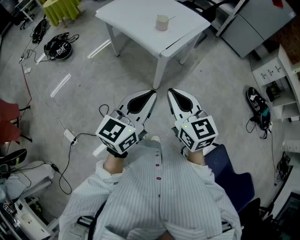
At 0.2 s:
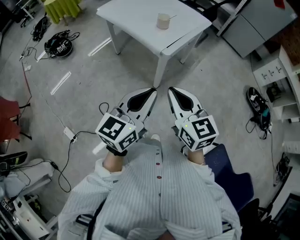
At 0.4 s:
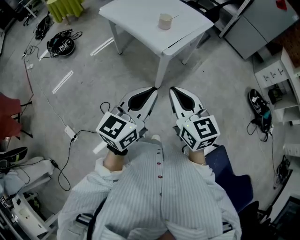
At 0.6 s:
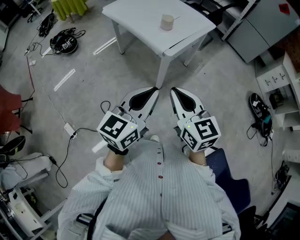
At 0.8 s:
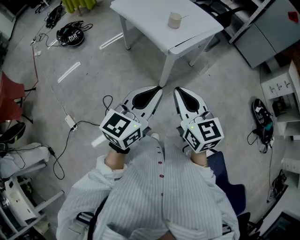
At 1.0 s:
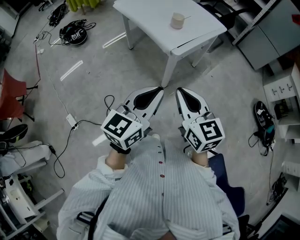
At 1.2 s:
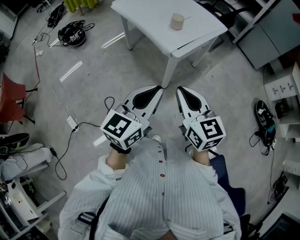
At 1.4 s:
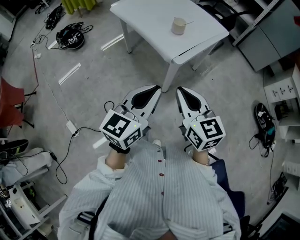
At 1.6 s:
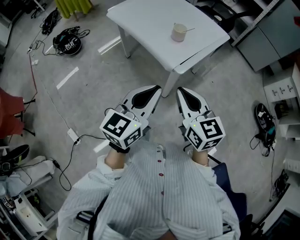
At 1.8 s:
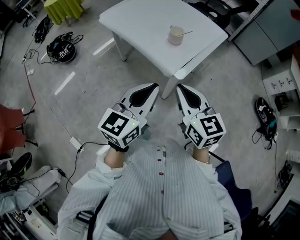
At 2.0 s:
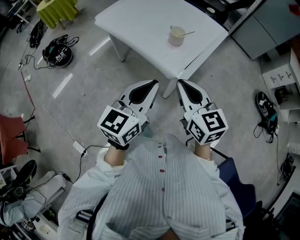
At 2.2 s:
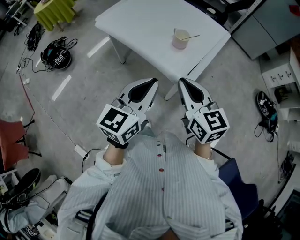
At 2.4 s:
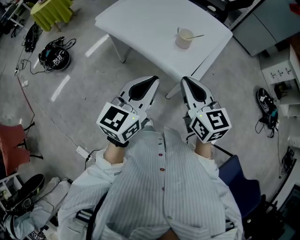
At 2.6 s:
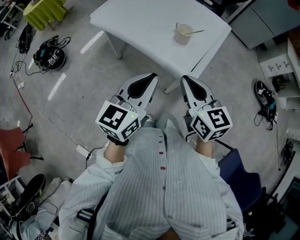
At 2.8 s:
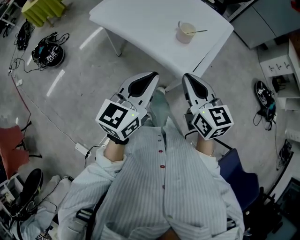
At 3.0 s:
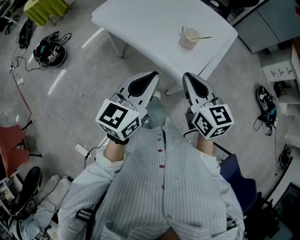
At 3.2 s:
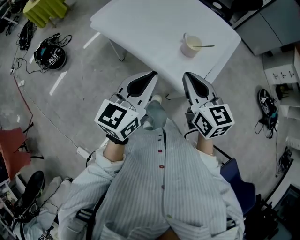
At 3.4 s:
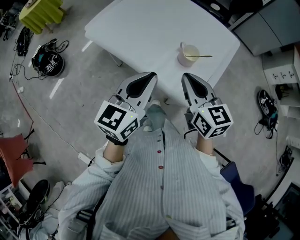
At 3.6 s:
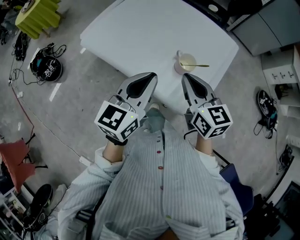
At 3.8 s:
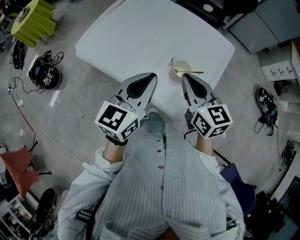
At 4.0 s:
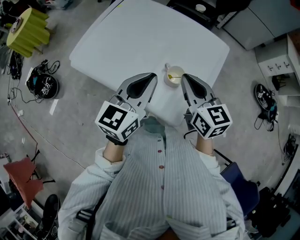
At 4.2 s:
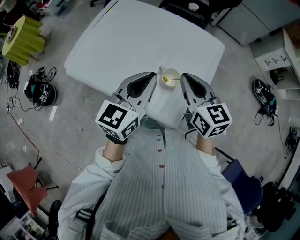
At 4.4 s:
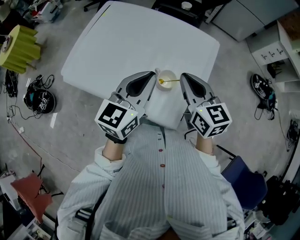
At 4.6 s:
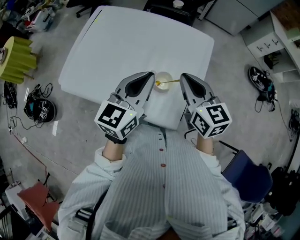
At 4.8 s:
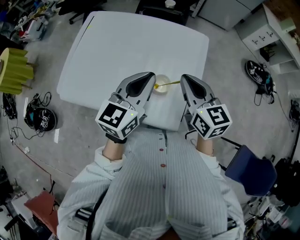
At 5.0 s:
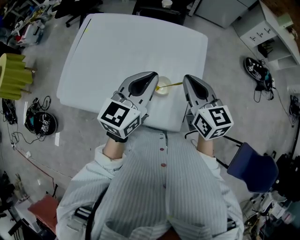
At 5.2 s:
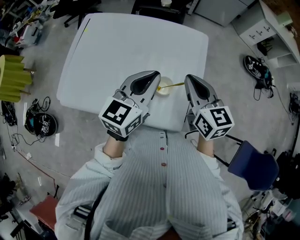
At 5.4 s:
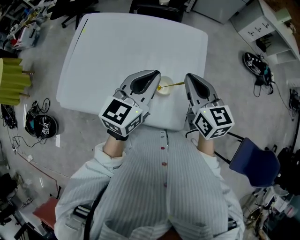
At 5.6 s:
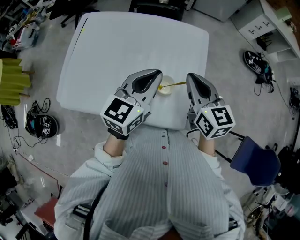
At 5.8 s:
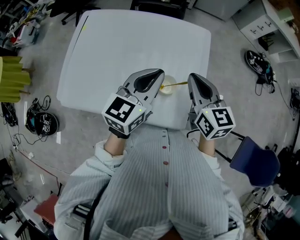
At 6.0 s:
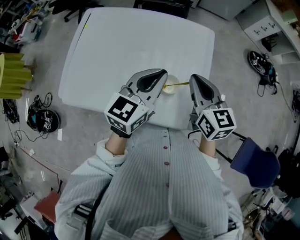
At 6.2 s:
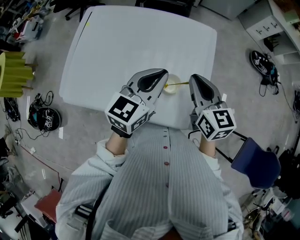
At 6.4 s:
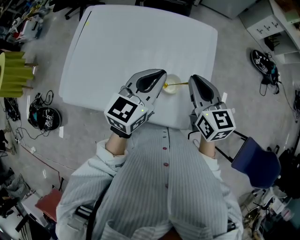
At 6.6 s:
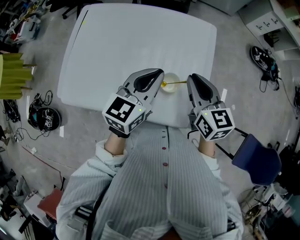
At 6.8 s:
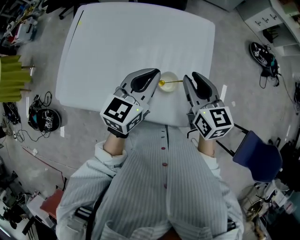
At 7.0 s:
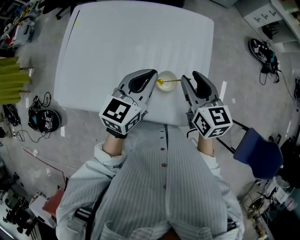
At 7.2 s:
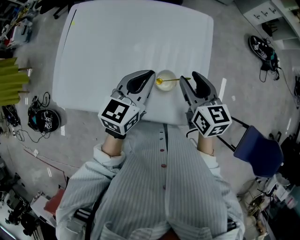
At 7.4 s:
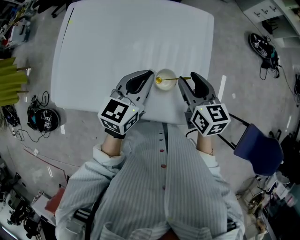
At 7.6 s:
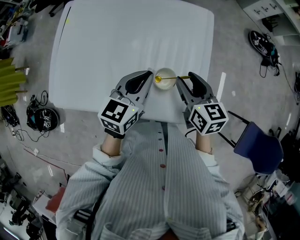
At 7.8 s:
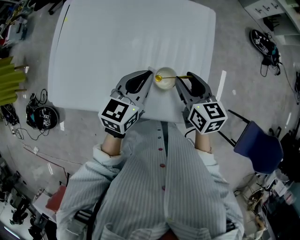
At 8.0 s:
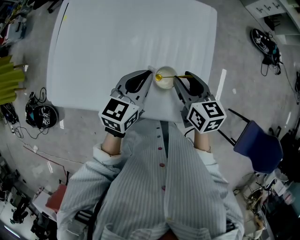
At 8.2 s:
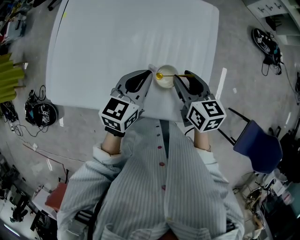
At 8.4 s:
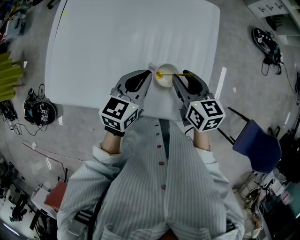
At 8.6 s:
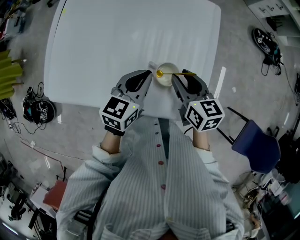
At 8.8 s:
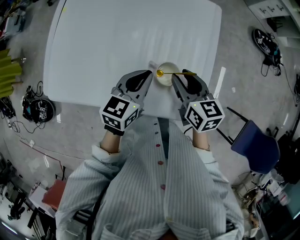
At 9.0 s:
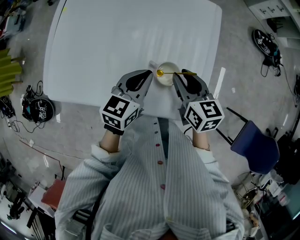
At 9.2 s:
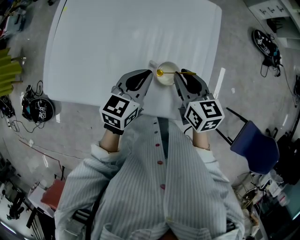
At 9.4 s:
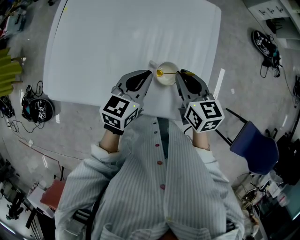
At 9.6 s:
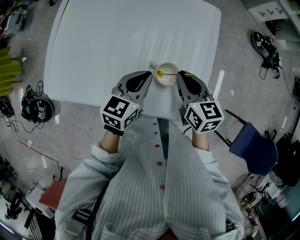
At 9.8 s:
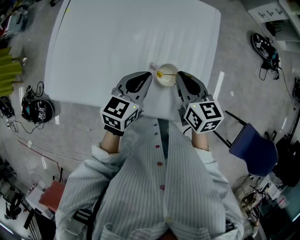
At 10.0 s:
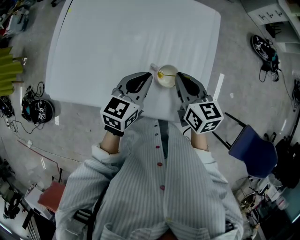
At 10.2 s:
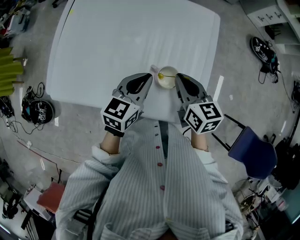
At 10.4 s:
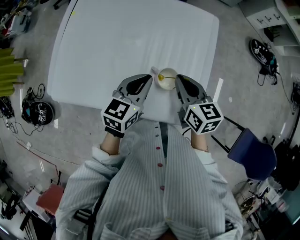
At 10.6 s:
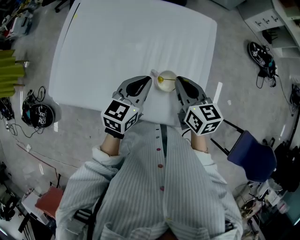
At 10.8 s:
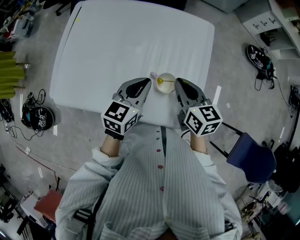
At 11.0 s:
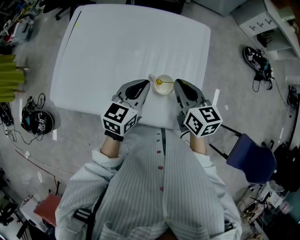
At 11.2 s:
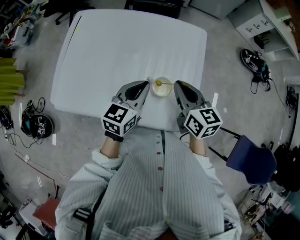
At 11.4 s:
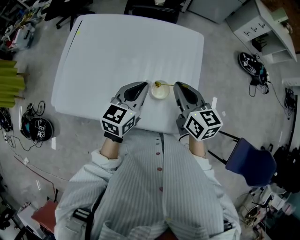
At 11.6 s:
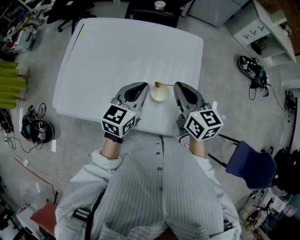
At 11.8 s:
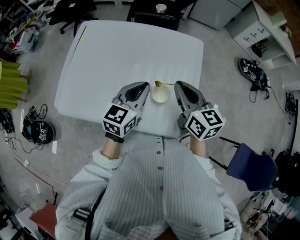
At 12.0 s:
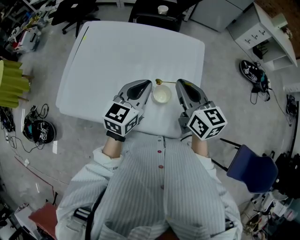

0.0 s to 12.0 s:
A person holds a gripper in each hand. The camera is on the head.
0.0 to 1.6 s: Both grippers move forward, some 15 cm.
1.6 to 3.0 s: Both grippers move forward and to the left, about 25 cm.
3.0 to 4.4 s: Both grippers move forward, approximately 30 cm.
4.4 to 6.0 s: The right gripper moves roughly 5 cm. Meanwhile the left gripper heads forward, covering some 5 cm.
6.0 to 7.6 s: Both grippers travel together downward, some 10 cm. The right gripper opens.
7.6 to 9.0 s: The left gripper shifts approximately 5 cm downward.
9.0 to 10.4 s: The right gripper closes its fingers.
10.4 to 12.0 s: Both grippers travel together upward, approximately 10 cm.

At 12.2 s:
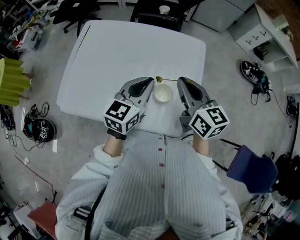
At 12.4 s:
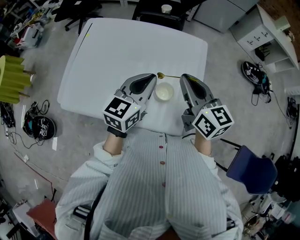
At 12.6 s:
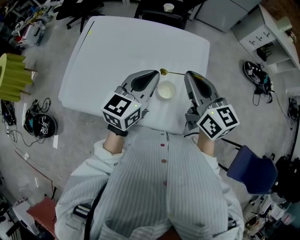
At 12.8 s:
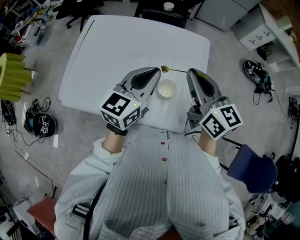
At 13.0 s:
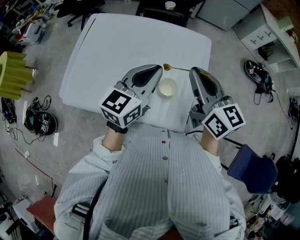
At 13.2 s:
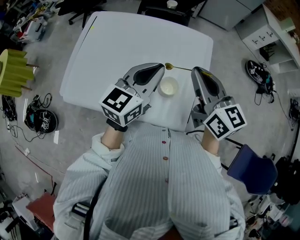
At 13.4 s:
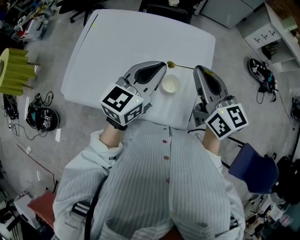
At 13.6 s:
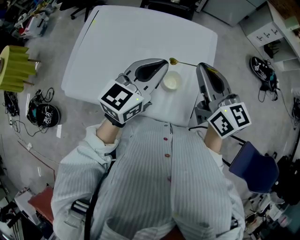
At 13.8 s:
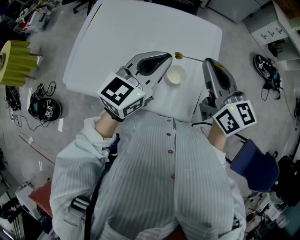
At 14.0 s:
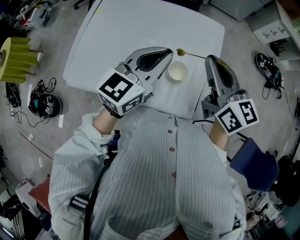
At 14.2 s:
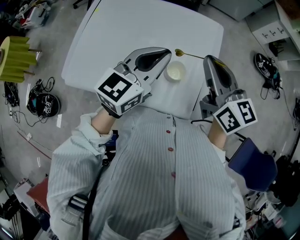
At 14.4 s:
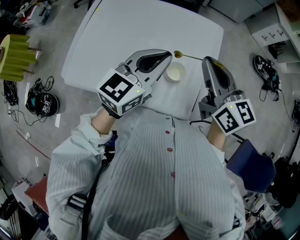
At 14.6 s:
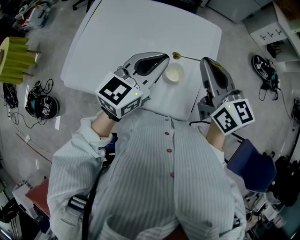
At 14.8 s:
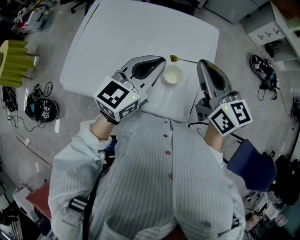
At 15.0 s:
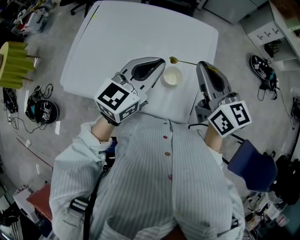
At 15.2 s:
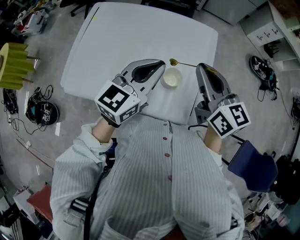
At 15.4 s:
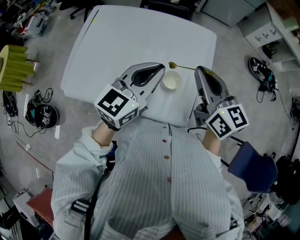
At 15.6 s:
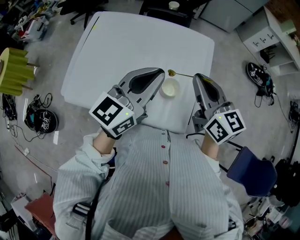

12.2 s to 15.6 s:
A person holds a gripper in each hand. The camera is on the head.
12.2 to 13.8 s: The left gripper travels upward by roughly 5 cm, while the right gripper ends up roughly 5 cm from where it was.
13.8 to 15.6 s: The grippers stay close to where they were, moving slightly.

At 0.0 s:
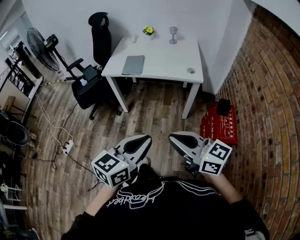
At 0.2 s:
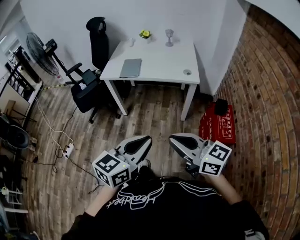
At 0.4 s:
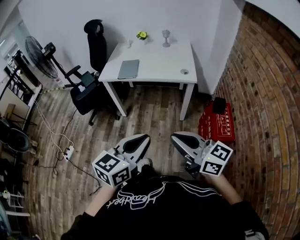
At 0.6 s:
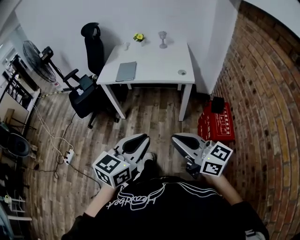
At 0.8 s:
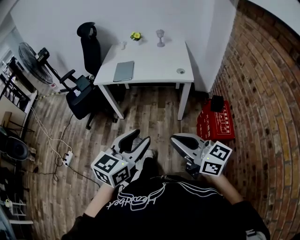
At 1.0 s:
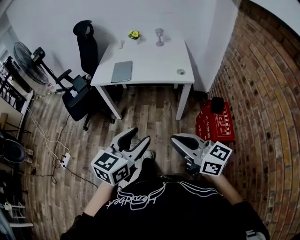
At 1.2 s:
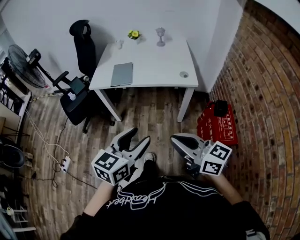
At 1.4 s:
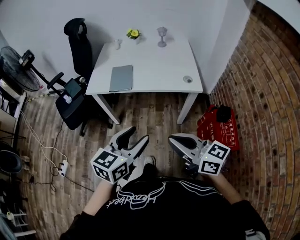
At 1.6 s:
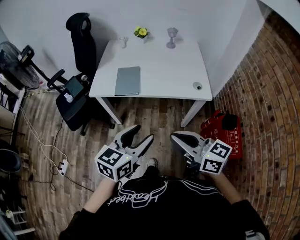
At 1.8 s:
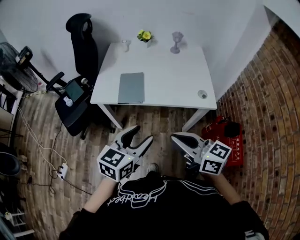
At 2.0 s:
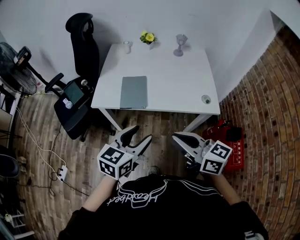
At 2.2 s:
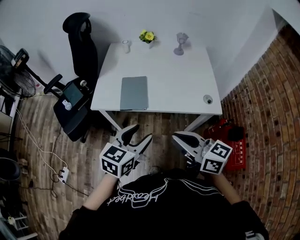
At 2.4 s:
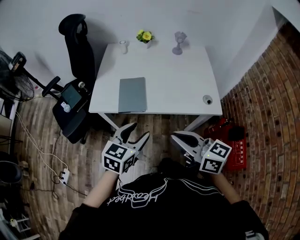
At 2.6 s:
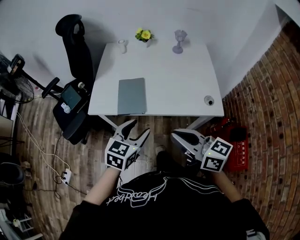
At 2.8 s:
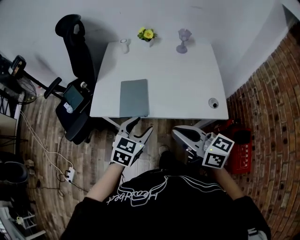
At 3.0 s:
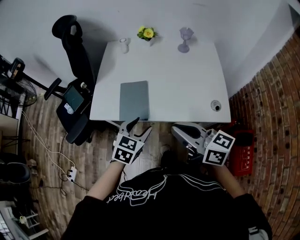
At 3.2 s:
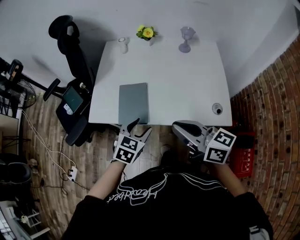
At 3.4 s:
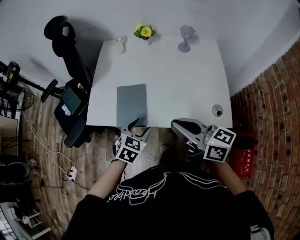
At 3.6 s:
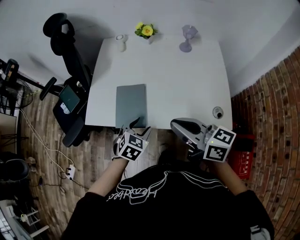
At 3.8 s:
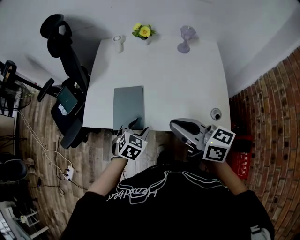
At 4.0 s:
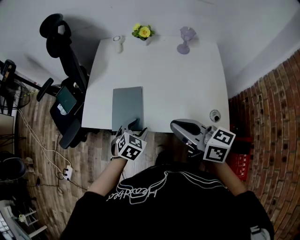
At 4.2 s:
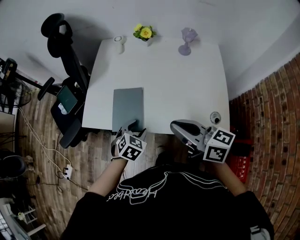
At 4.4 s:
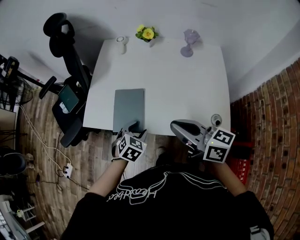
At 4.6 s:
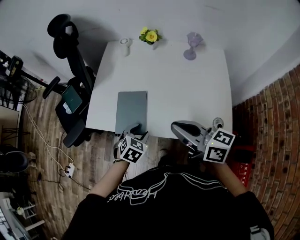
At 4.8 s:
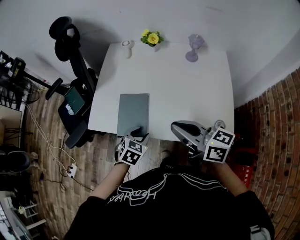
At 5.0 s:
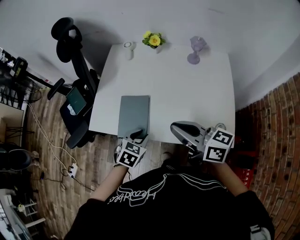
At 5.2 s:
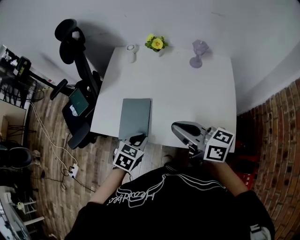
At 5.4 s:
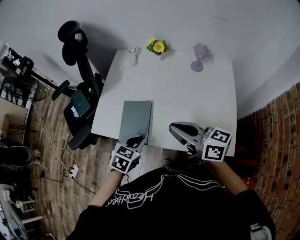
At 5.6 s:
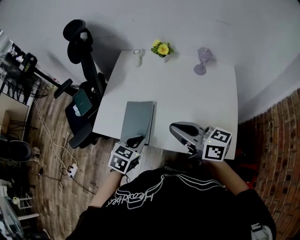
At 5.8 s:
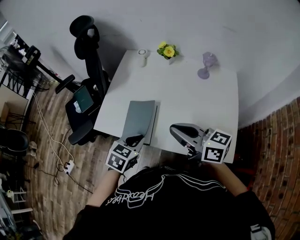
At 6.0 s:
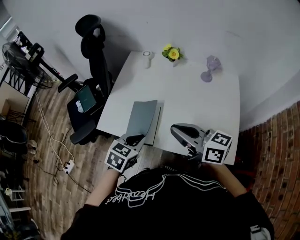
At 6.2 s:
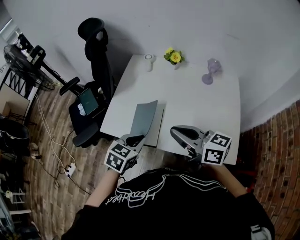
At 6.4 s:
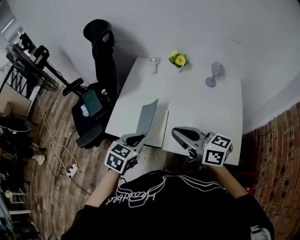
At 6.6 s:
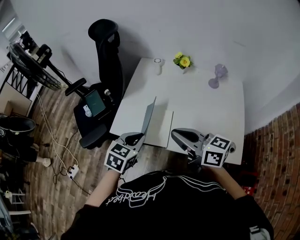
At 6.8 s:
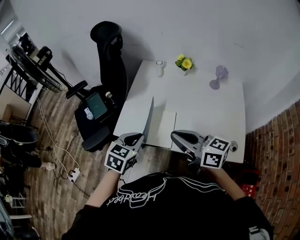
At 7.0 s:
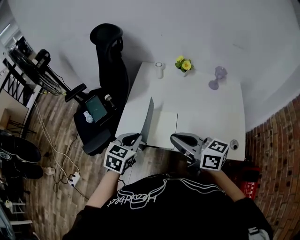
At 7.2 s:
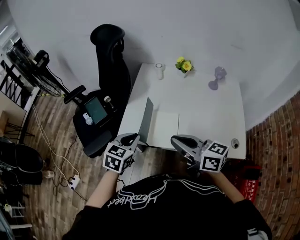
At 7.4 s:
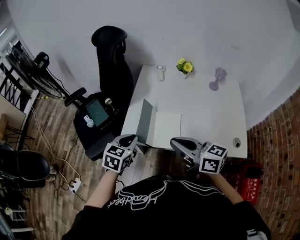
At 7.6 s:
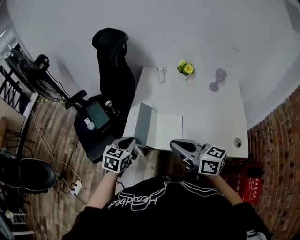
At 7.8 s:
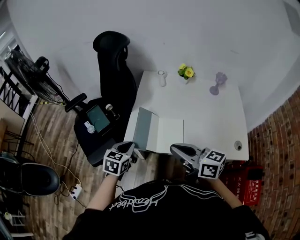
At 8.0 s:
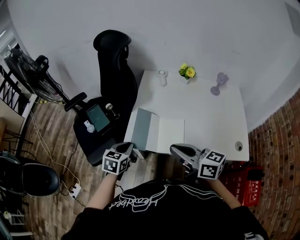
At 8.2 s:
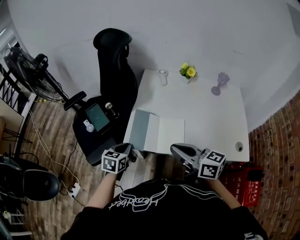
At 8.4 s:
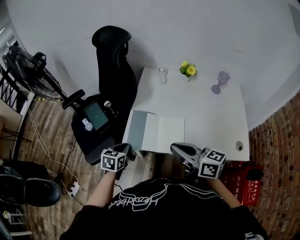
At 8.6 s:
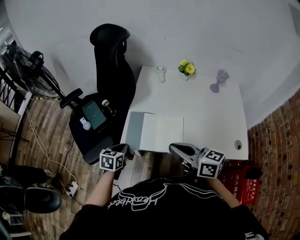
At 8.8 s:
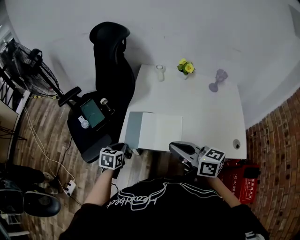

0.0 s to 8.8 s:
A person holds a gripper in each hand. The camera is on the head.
0.0 to 1.4 s: Both grippers travel together forward, approximately 15 cm. The left gripper opens.
1.4 to 3.0 s: The left gripper travels forward and downward by roughly 35 cm, and turns by roughly 30 degrees. Meanwhile the right gripper moves forward, some 30 cm.
3.0 to 4.4 s: The right gripper travels forward by about 10 cm; the left gripper is displaced downward and forward by some 10 cm.
4.4 to 5.8 s: The right gripper heads forward, covering roughly 5 cm. Meanwhile the left gripper moves upward, about 10 cm, and closes its fingers.
5.8 to 7.4 s: The grippers both shift to the left by approximately 15 cm.
7.4 to 8.8 s: The left gripper moves downward and to the left, some 15 cm.
